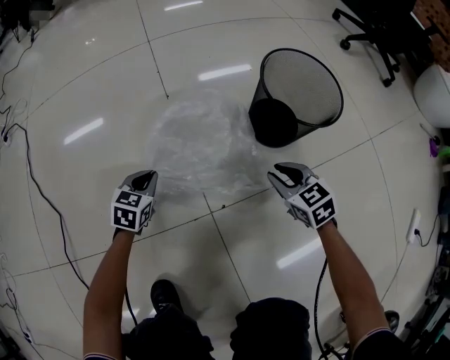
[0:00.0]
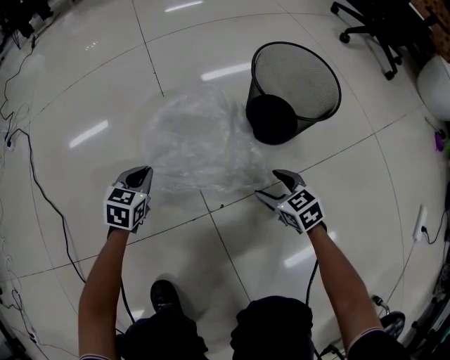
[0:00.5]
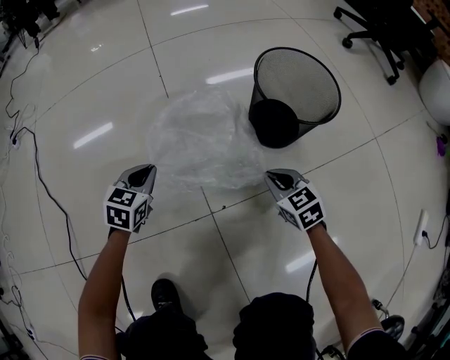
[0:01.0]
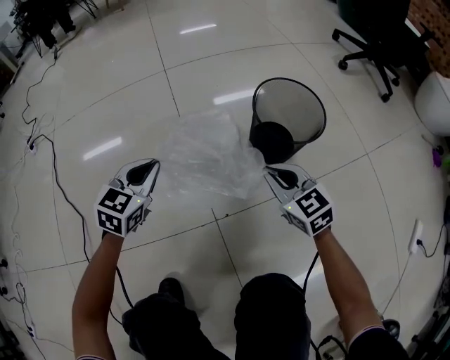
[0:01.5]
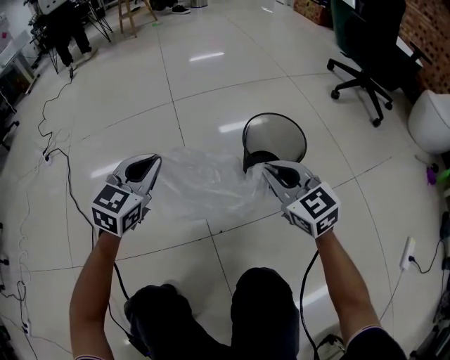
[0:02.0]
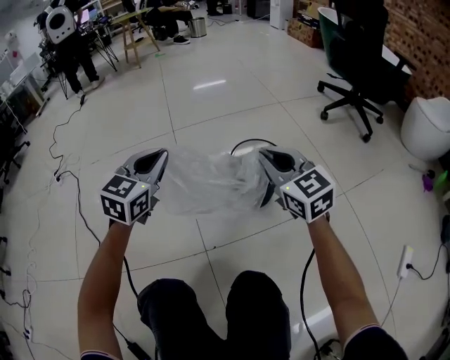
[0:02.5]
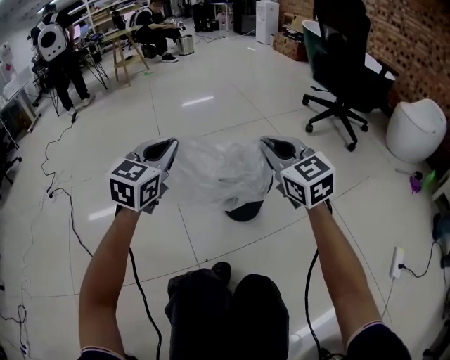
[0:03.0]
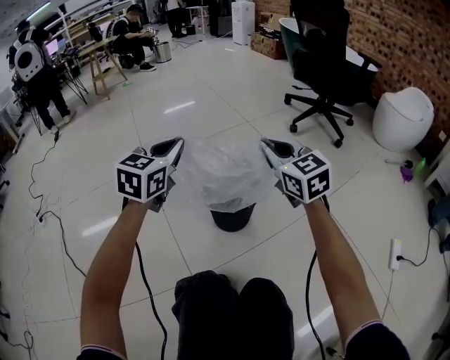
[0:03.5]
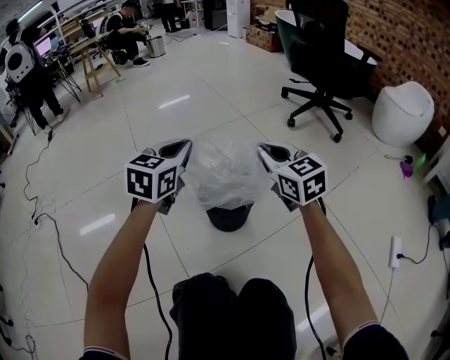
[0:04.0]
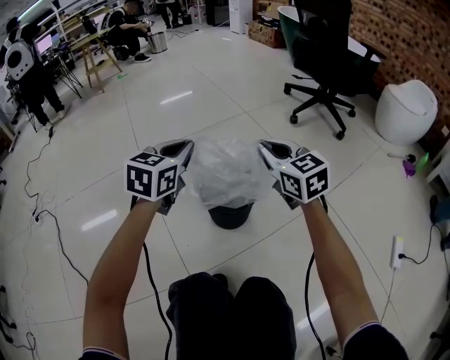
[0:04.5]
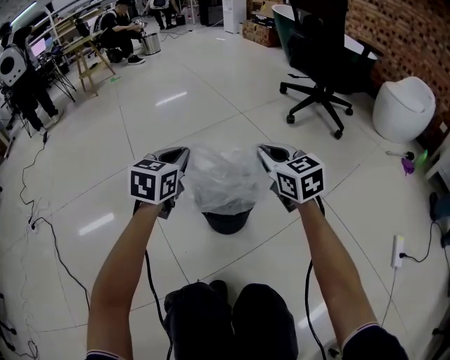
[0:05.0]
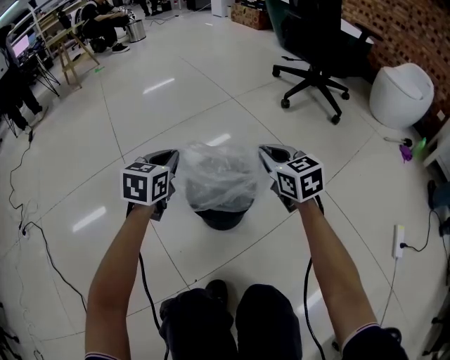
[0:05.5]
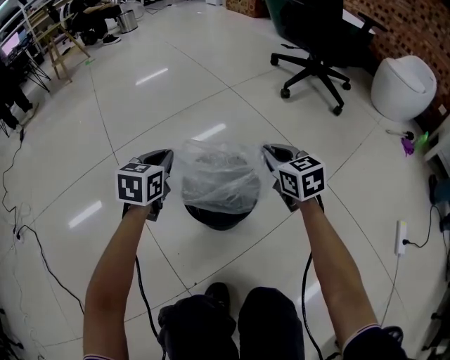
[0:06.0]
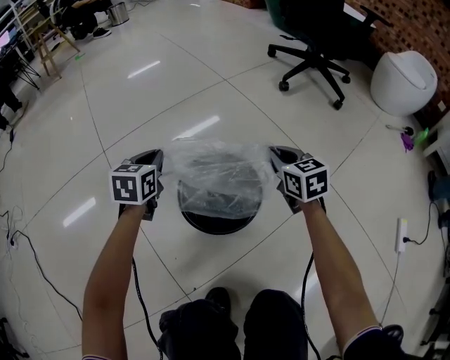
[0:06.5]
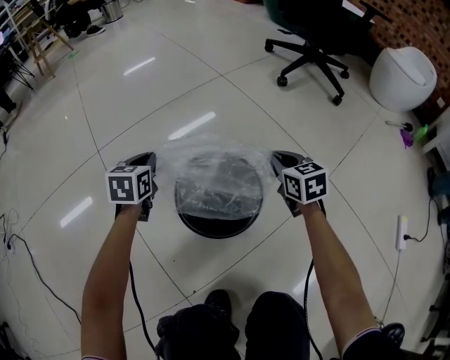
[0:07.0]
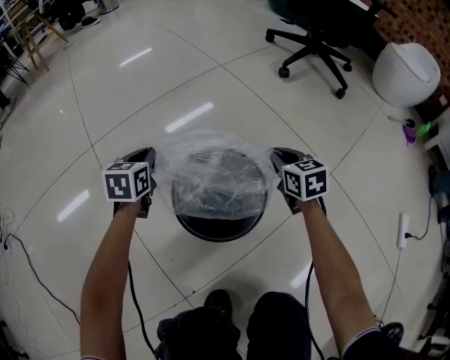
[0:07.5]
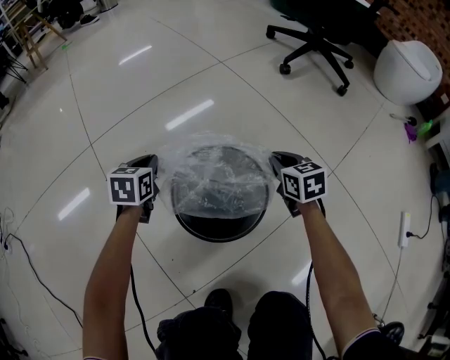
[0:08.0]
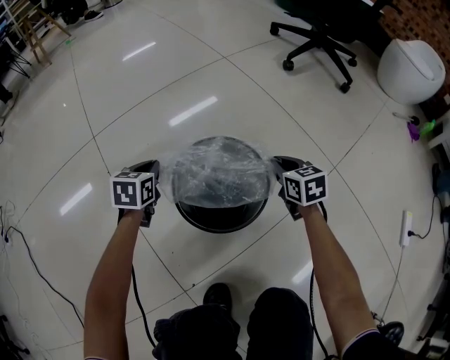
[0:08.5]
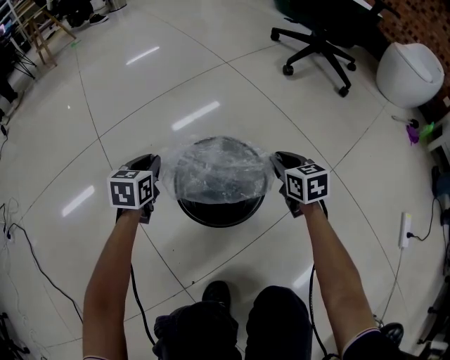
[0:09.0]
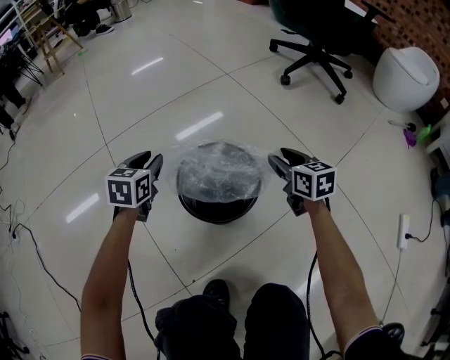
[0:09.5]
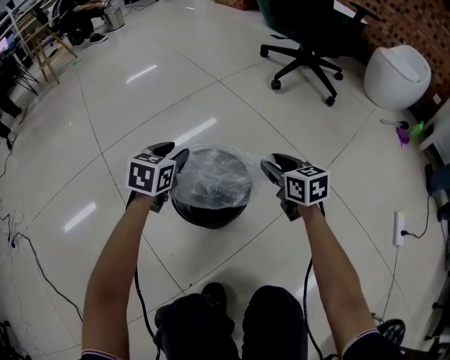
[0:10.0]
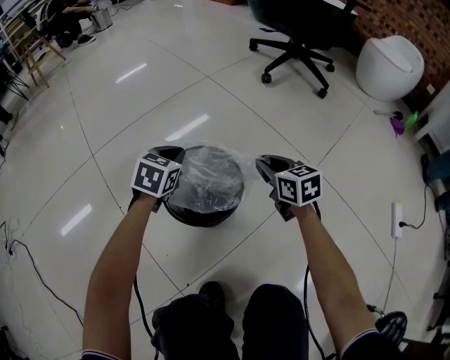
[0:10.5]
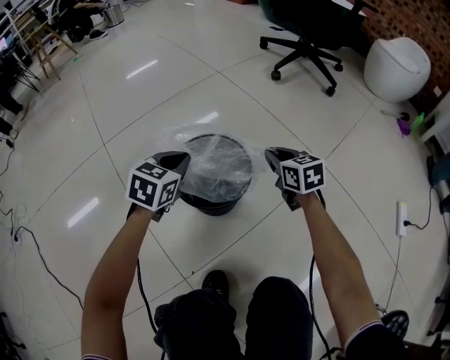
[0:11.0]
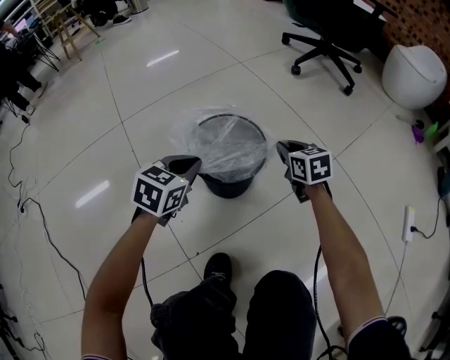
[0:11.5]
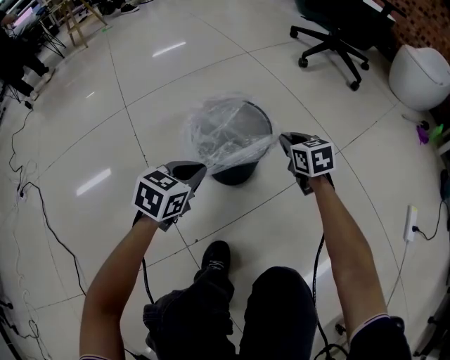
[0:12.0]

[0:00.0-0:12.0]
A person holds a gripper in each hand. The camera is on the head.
0:00.0 to 0:02.0: The grippers both shift upward by some 30 cm. The right gripper turns by approximately 30 degrees, and closes up. The left gripper rotates about 30 degrees.
0:02.0 to 0:04.0: Both grippers move to the right, forward and upward, about 25 cm.
0:04.0 to 0:06.0: Both grippers move downward and forward, approximately 20 cm.
0:06.0 to 0:08.0: Both grippers travel together downward, about 15 cm.
0:08.0 to 0:10.0: The right gripper moves upward and backward, about 10 cm, and opens. Meanwhile the left gripper is displaced upward and to the right by approximately 15 cm, and opens up.
0:10.0 to 0:12.0: The left gripper goes approximately 20 cm backward, and closes up. Meanwhile the right gripper shifts some 5 cm downward, and closes up.

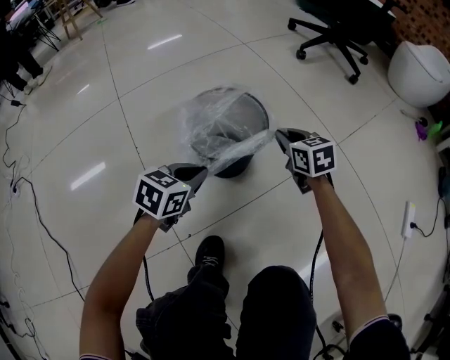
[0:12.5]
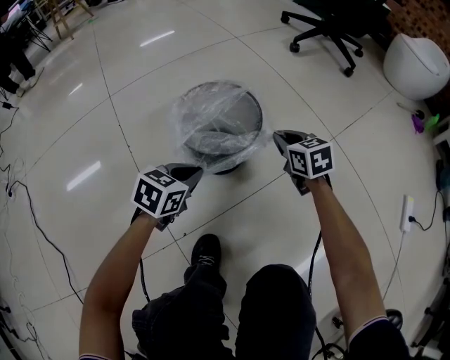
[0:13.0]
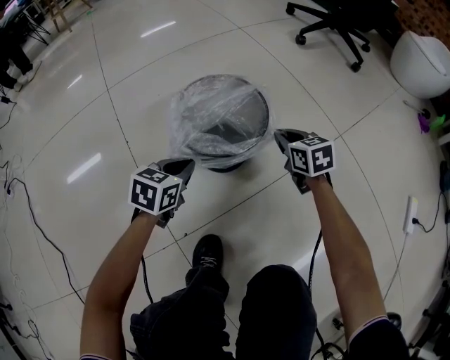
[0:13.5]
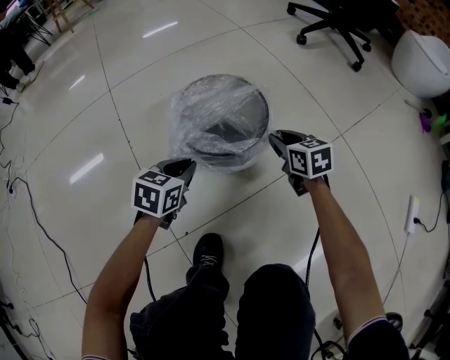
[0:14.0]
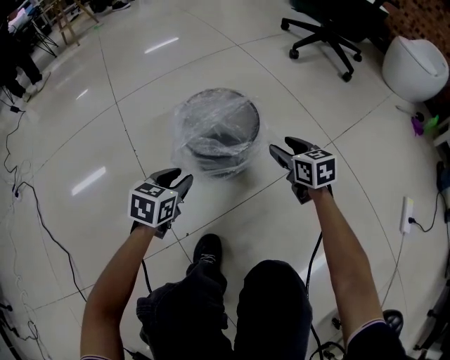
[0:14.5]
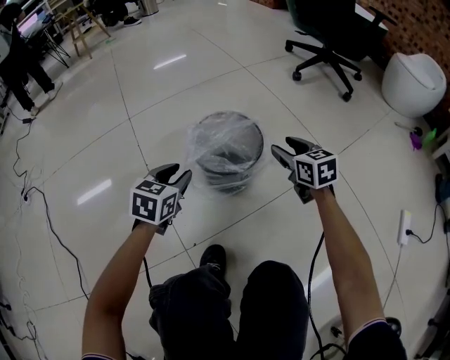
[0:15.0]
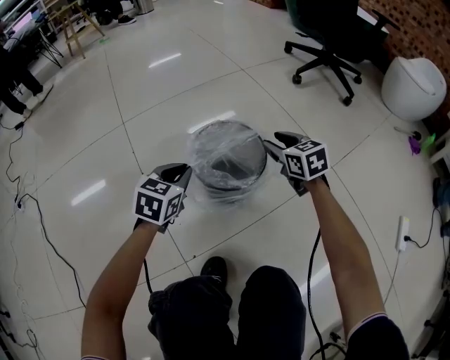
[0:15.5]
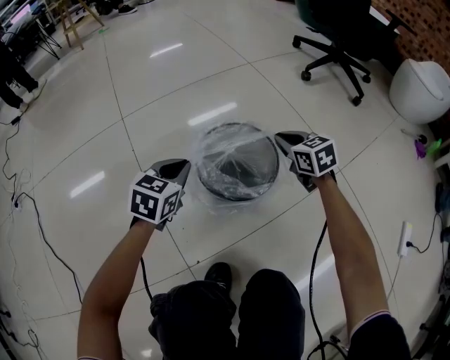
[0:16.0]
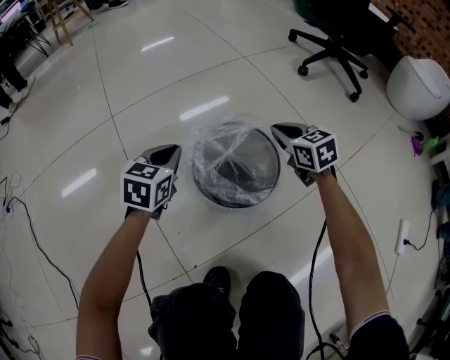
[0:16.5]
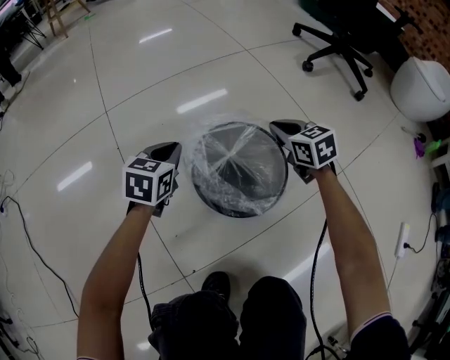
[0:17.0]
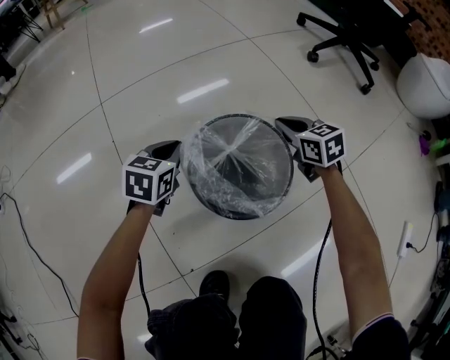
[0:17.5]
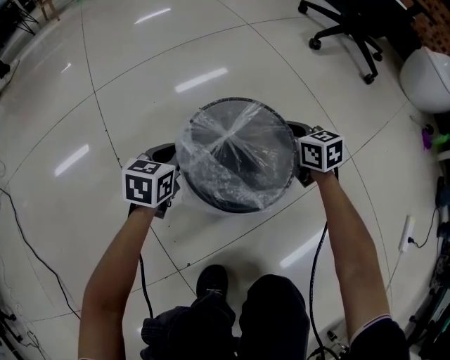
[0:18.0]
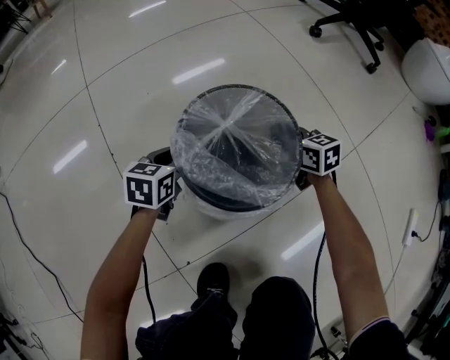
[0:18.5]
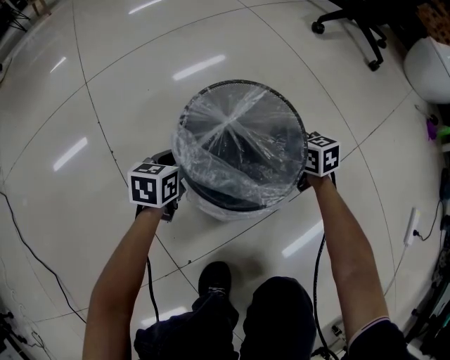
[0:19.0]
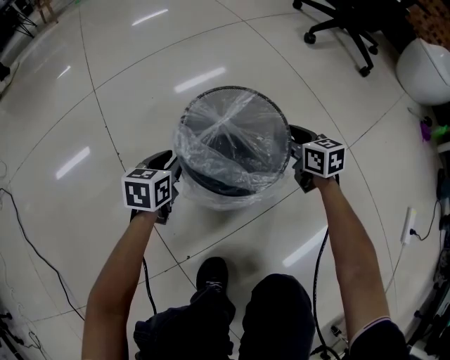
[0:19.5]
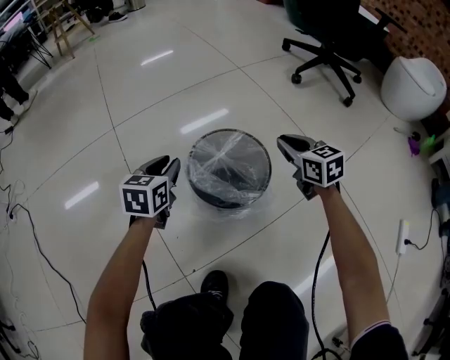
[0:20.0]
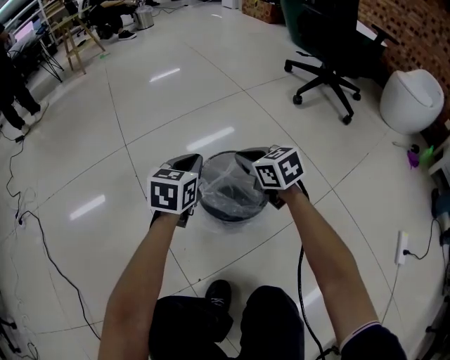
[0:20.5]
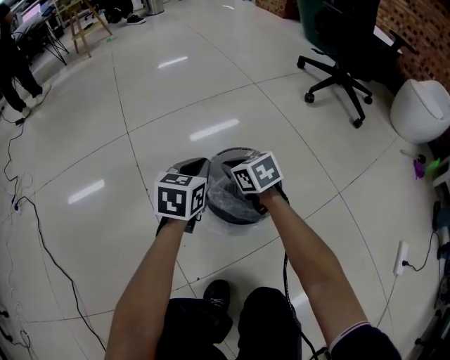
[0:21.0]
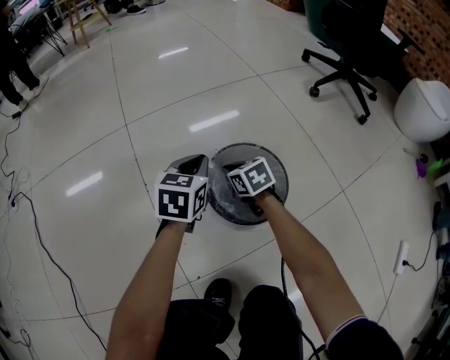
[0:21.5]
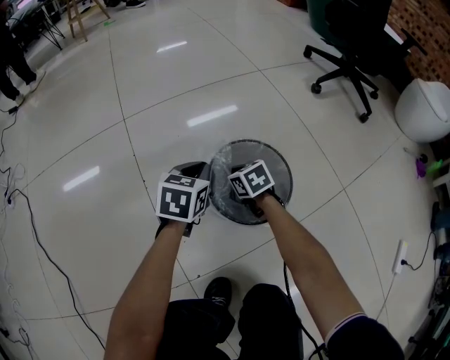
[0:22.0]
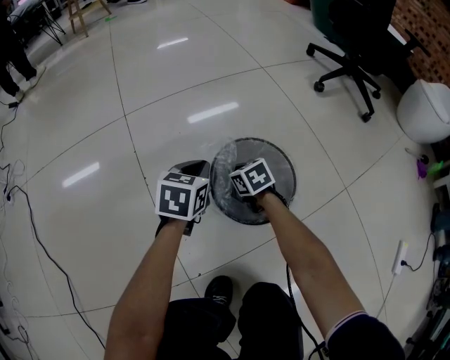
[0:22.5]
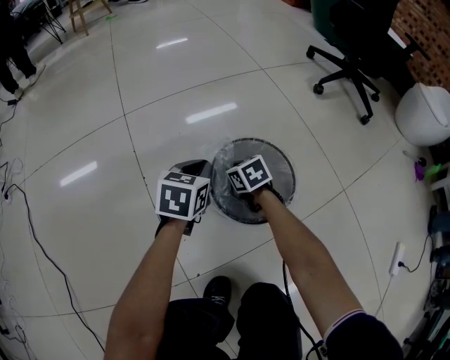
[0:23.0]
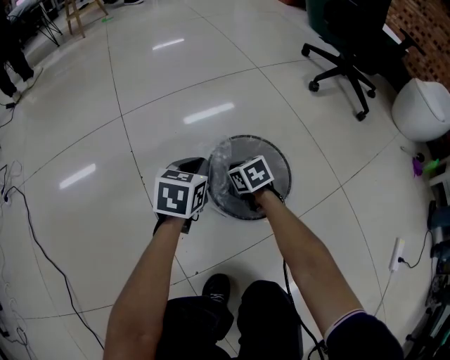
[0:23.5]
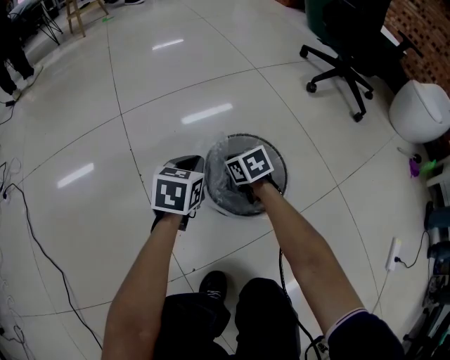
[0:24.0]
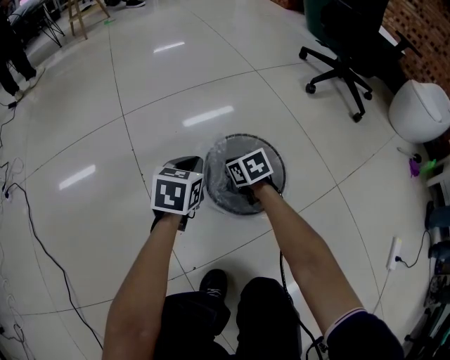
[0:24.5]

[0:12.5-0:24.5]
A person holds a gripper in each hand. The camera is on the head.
0:12.5 to 0:14.5: The left gripper opens its fingers, while the right gripper opens up.
0:14.5 to 0:16.5: Both grippers move forward, roughly 15 cm. The left gripper closes its fingers. The right gripper closes up.
0:16.5 to 0:18.5: Both grippers move downward, roughly 15 cm.
0:18.5 to 0:20.5: The left gripper goes approximately 25 cm upward, and opens, then closes once more. The right gripper goes approximately 25 cm upward and to the left, and opens, then closes again.
0:20.5 to 0:22.5: The left gripper is displaced downward by some 10 cm; the right gripper heads downward, covering roughly 20 cm.
0:22.5 to 0:24.5: The grippers move only a little.

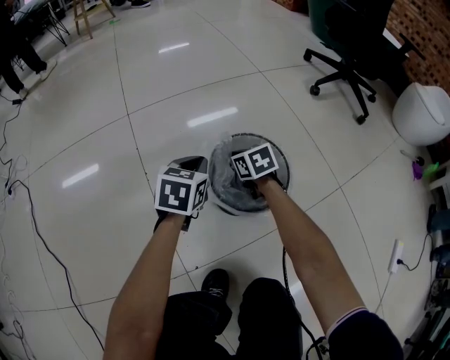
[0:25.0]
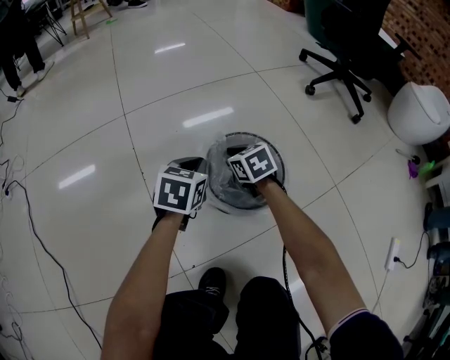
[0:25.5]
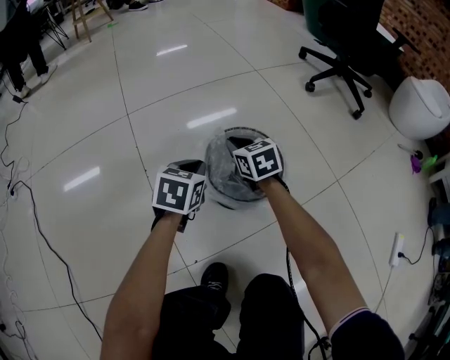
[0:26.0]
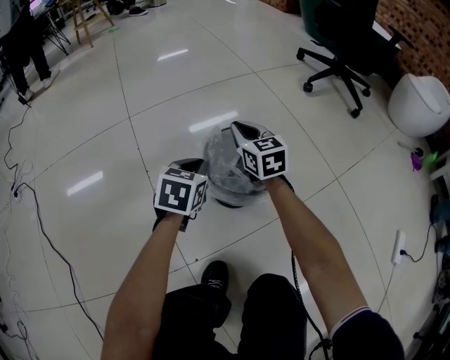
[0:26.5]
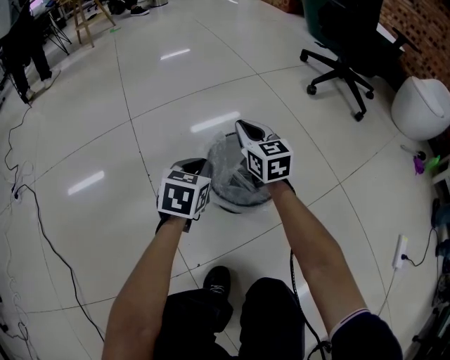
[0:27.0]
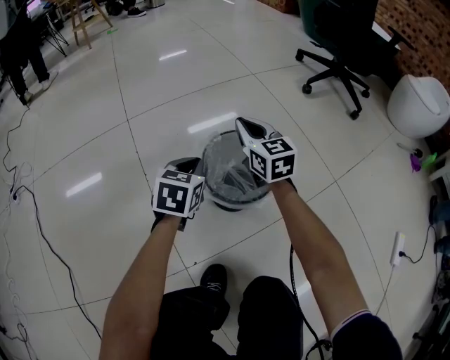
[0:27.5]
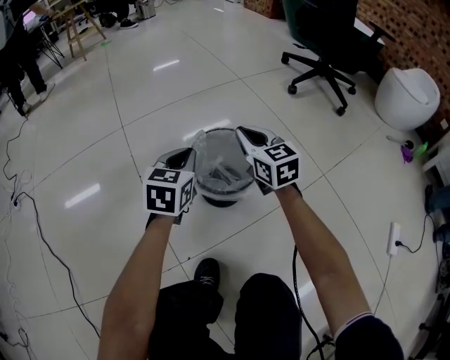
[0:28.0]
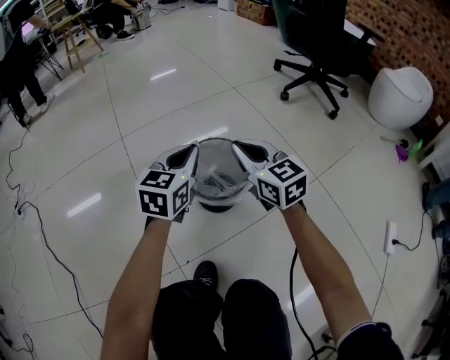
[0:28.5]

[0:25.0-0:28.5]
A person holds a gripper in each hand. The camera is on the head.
0:25.0 to 0:27.0: The right gripper goes roughly 15 cm upward, and points its fingers about 30 degrees further upward.
0:27.0 to 0:28.5: The left gripper shifts approximately 15 cm upward, and turns by about 20 degrees, while the right gripper is displaced backward and upward by about 20 cm.
